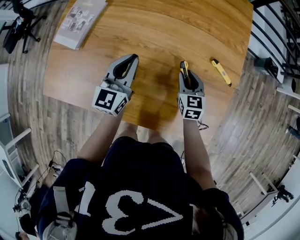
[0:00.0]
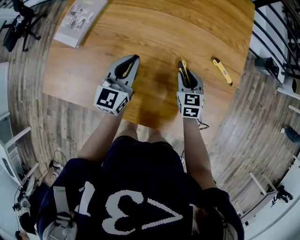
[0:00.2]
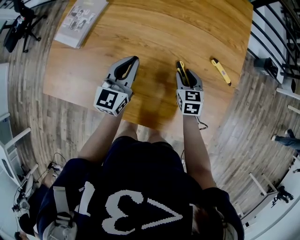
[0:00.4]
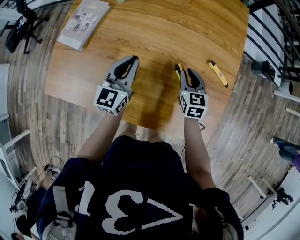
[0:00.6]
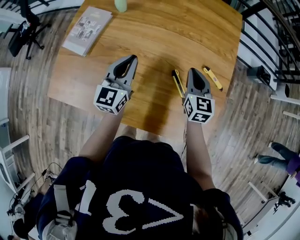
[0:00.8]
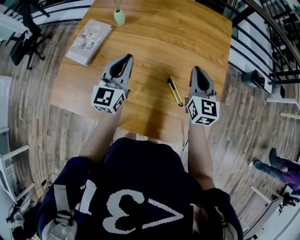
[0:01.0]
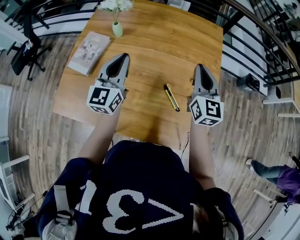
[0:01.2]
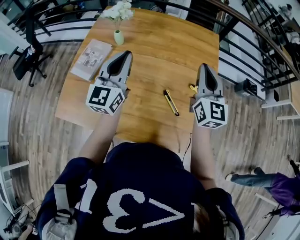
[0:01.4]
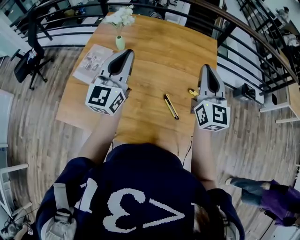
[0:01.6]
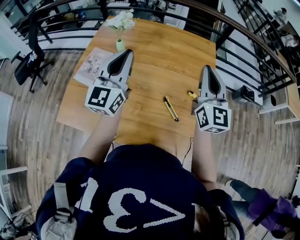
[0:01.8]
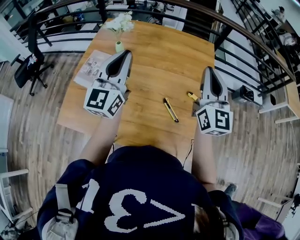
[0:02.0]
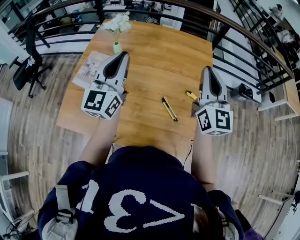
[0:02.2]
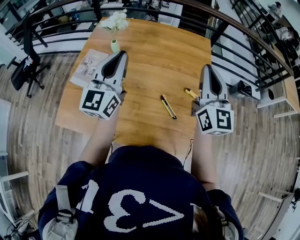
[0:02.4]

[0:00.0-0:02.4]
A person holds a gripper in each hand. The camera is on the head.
0:00.0 to 0:01.2: The right gripper heads upward, covering some 30 cm, tilts its fingers some 30 degrees upward, and closes up, while the left gripper travels upward by approximately 15 cm.
0:01.2 to 0:02.4: The two grippers go about 15 cm upward.

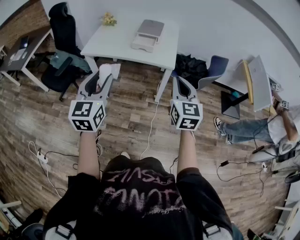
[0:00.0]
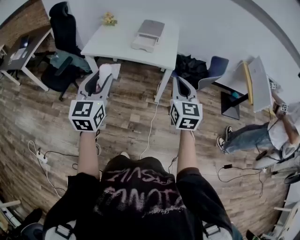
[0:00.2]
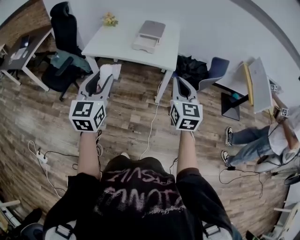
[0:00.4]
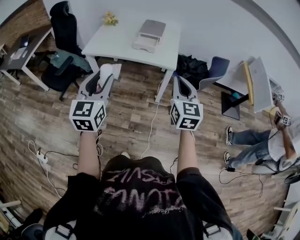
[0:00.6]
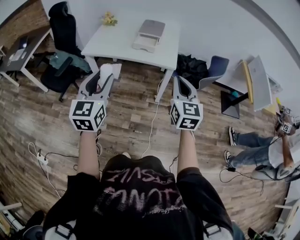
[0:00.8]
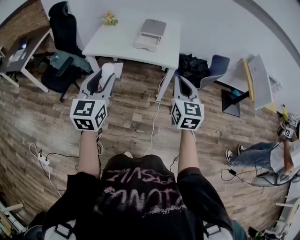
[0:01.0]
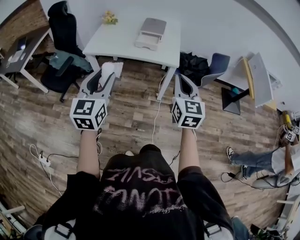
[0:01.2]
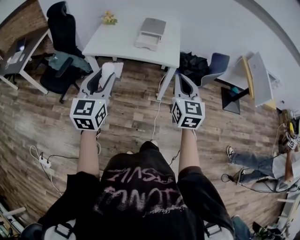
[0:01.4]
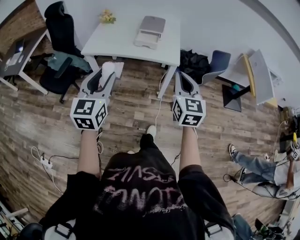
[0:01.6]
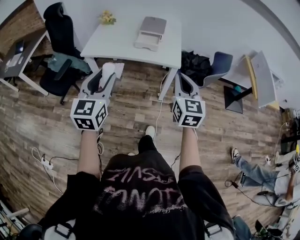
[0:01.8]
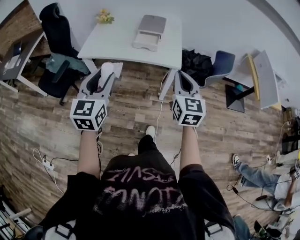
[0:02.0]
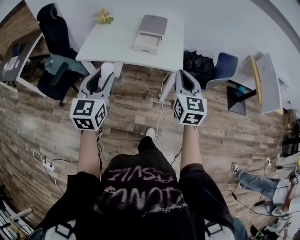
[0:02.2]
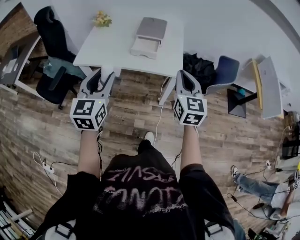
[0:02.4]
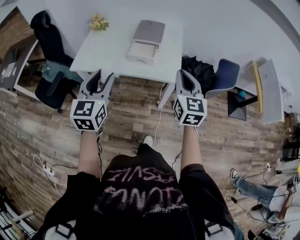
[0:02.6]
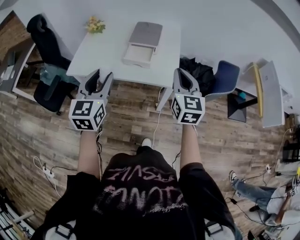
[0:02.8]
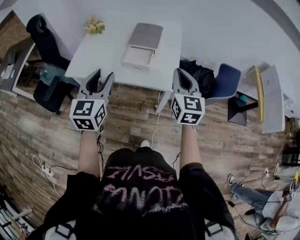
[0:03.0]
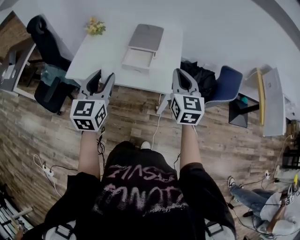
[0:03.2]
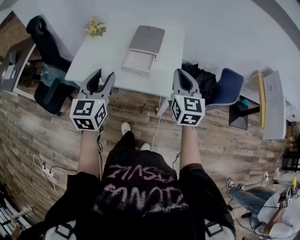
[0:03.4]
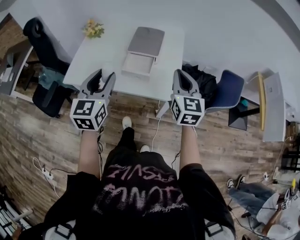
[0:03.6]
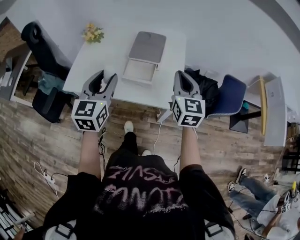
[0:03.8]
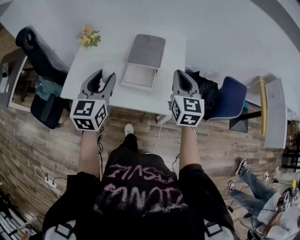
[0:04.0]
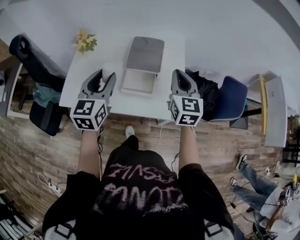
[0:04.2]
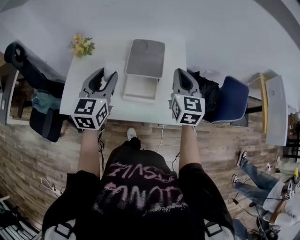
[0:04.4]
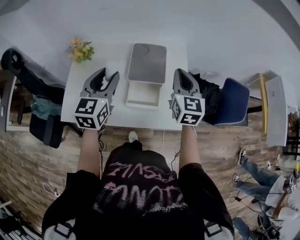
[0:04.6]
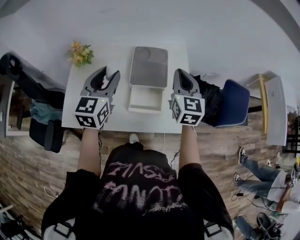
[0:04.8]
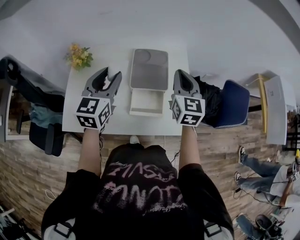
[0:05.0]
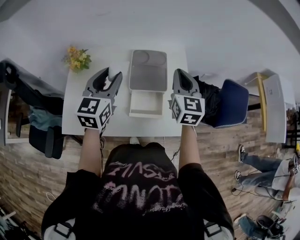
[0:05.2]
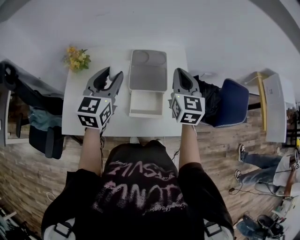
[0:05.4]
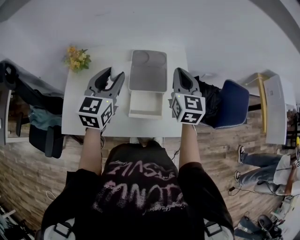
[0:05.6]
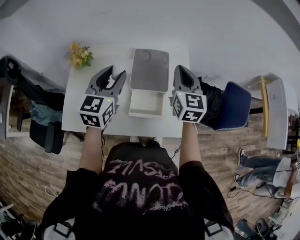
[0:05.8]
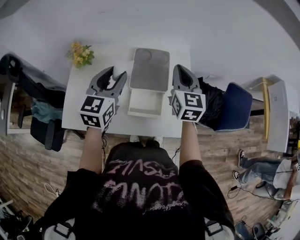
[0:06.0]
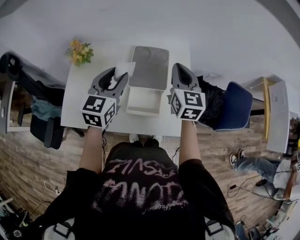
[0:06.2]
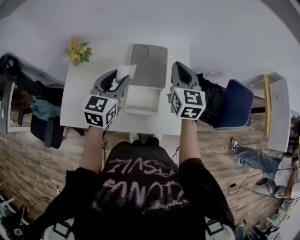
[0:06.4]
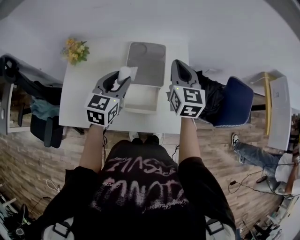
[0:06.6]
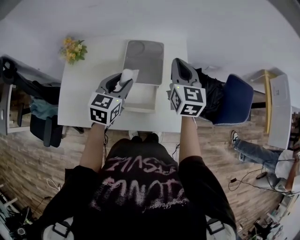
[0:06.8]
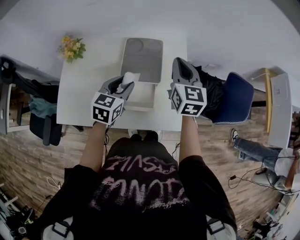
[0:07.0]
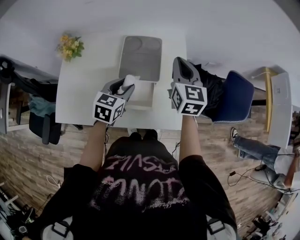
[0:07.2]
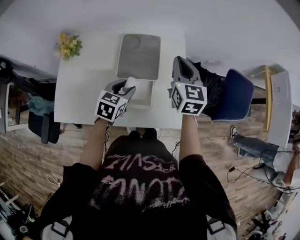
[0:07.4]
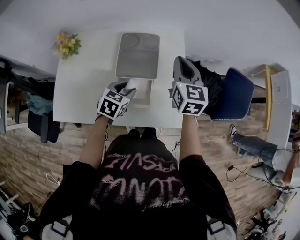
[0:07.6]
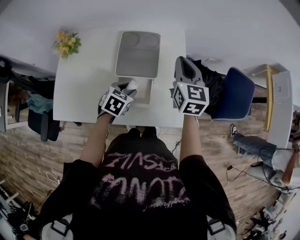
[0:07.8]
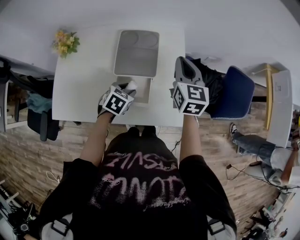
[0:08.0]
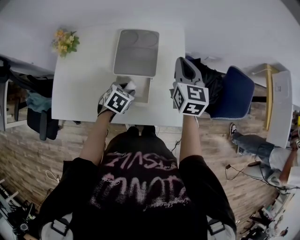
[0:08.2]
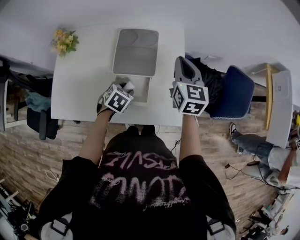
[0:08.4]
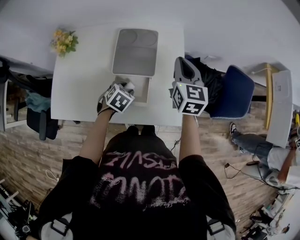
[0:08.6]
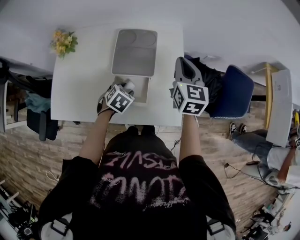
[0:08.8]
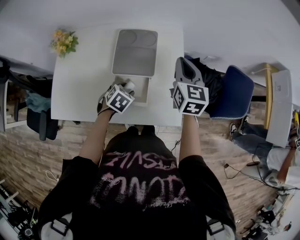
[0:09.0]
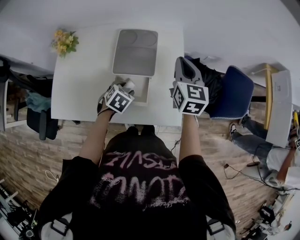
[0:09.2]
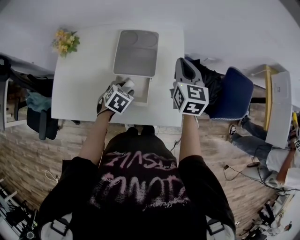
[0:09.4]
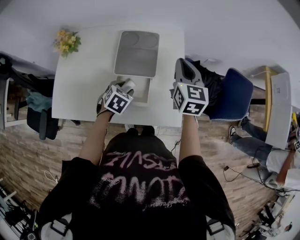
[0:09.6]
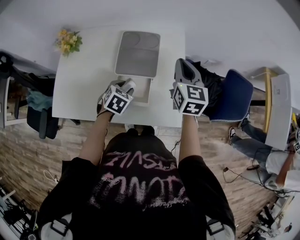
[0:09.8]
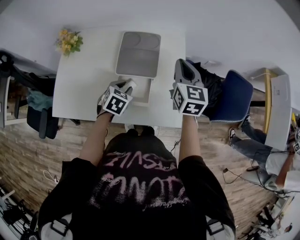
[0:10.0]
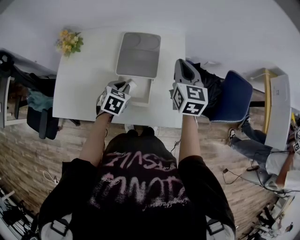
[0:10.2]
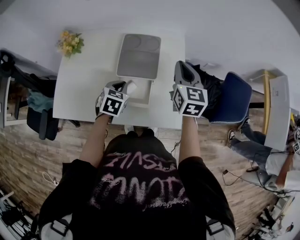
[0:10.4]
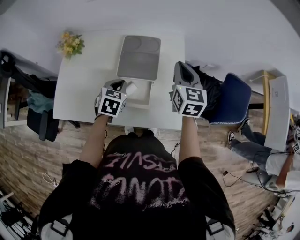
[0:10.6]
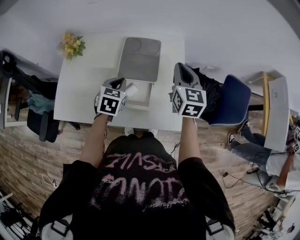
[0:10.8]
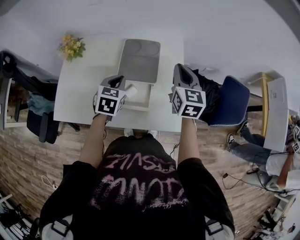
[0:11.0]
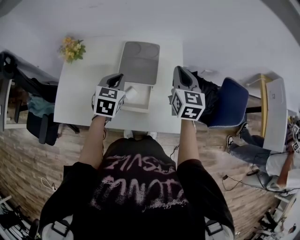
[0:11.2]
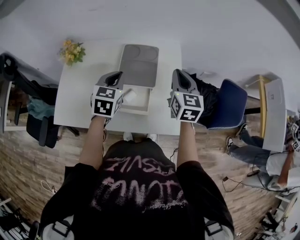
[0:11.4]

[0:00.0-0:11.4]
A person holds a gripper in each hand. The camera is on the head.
0:00.0 to 0:01.4: The grippers stay close to where they were, moving slightly.
0:01.4 to 0:02.8: The two grippers go approximately 25 cm forward.
0:02.8 to 0:04.2: The grippers both shift forward by some 25 cm.
0:04.2 to 0:05.6: The left gripper goes roughly 15 cm forward; the right gripper shifts about 15 cm forward and to the left.
0:05.6 to 0:07.2: The left gripper is displaced downward and to the right by about 20 cm, and rotates approximately 30 degrees. Meanwhile the right gripper changes place by approximately 5 cm.
0:07.2 to 0:08.6: The left gripper travels downward by roughly 10 cm, and changes its angle by some 30 degrees.
0:08.6 to 0:10.0: There are only small adjustments of the grippers.
0:10.0 to 0:11.4: The left gripper is displaced upward by roughly 15 cm, changes its angle by about 30 degrees, and closes.

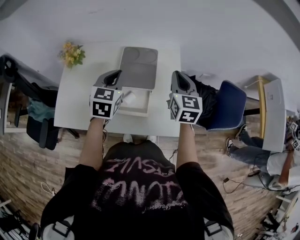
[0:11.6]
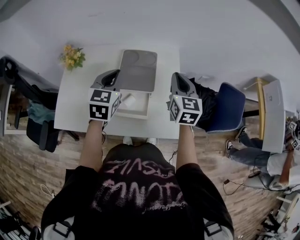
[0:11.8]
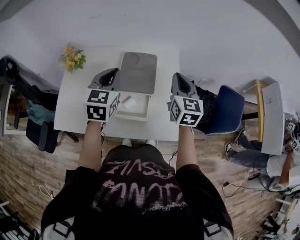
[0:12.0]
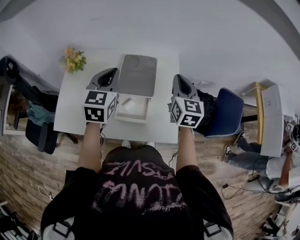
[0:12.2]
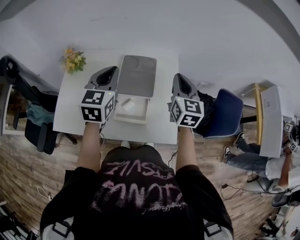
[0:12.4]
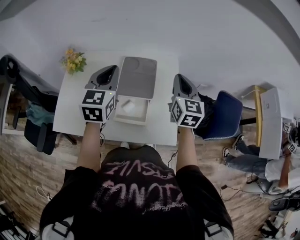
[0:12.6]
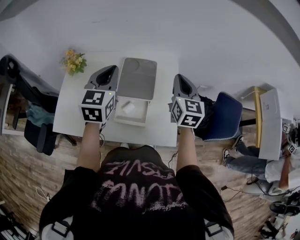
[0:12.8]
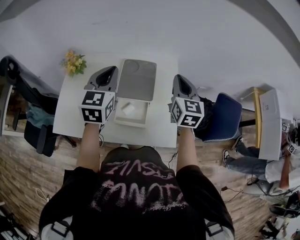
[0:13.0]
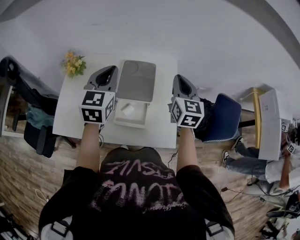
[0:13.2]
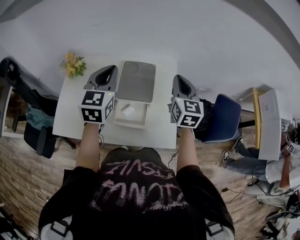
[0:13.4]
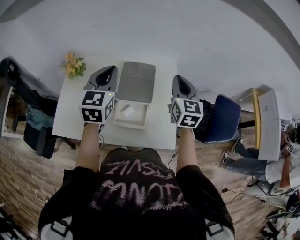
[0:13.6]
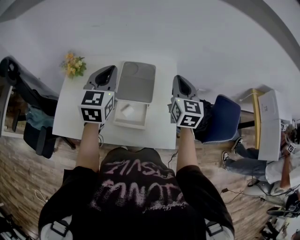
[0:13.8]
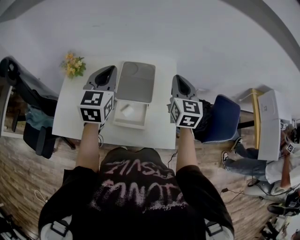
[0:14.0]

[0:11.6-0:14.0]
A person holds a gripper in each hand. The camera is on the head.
0:11.6 to 0:12.8: The left gripper heads upward, covering some 10 cm.
0:12.8 to 0:14.0: Both grippers stay put.

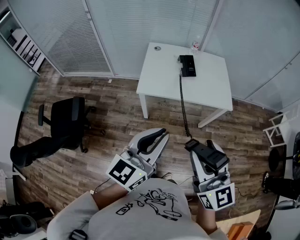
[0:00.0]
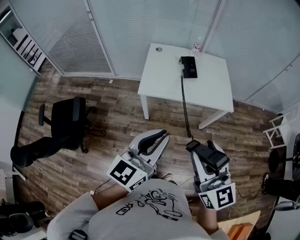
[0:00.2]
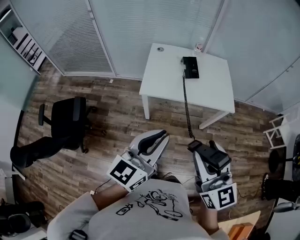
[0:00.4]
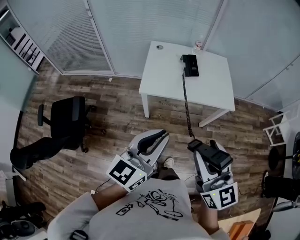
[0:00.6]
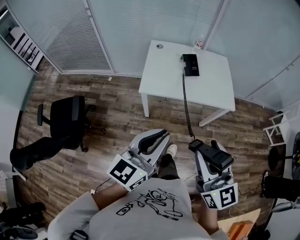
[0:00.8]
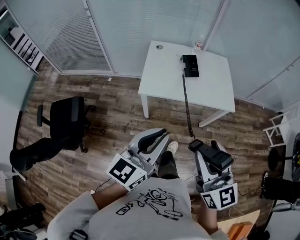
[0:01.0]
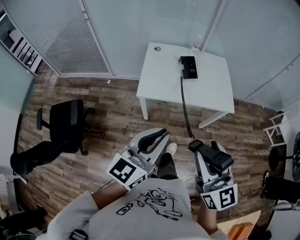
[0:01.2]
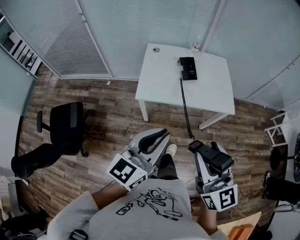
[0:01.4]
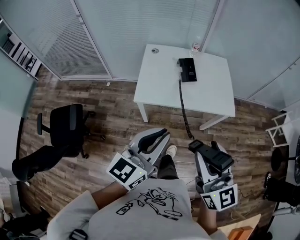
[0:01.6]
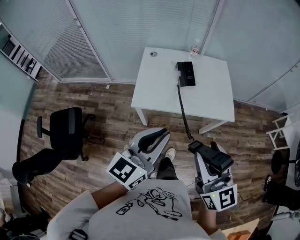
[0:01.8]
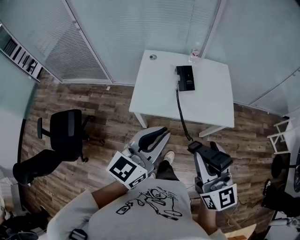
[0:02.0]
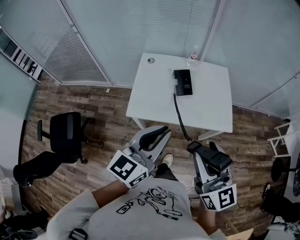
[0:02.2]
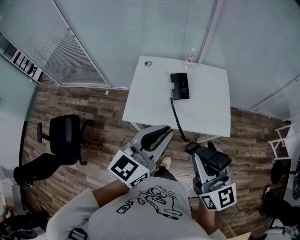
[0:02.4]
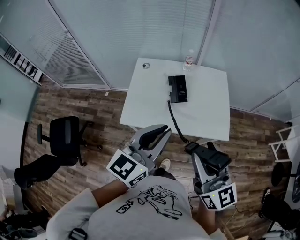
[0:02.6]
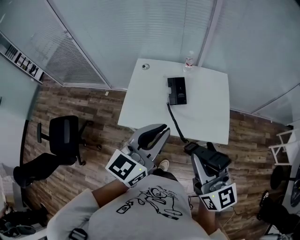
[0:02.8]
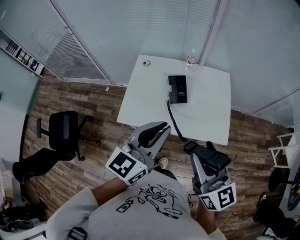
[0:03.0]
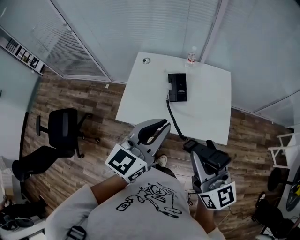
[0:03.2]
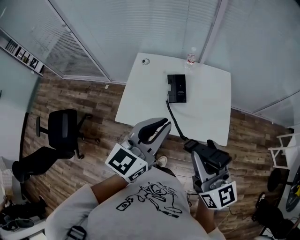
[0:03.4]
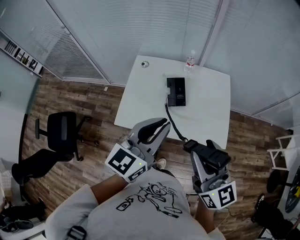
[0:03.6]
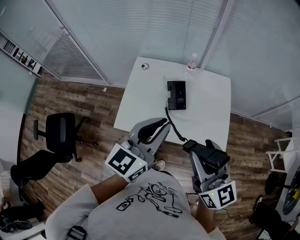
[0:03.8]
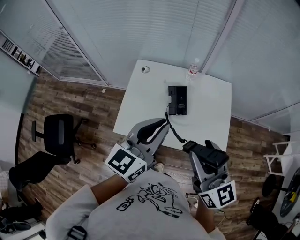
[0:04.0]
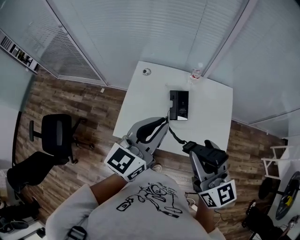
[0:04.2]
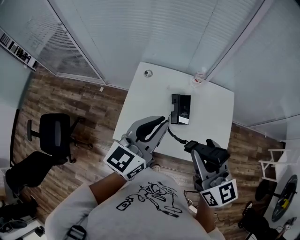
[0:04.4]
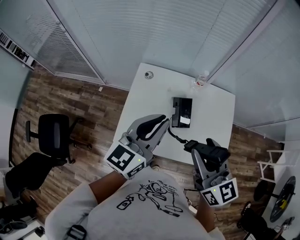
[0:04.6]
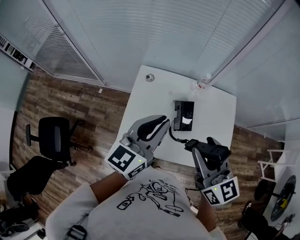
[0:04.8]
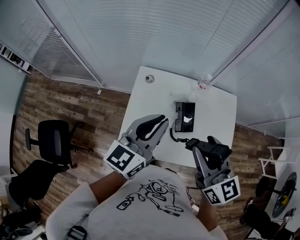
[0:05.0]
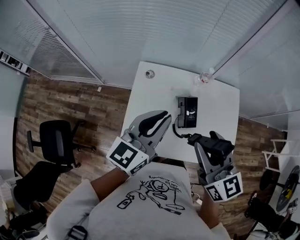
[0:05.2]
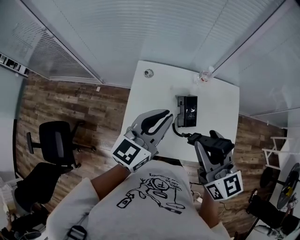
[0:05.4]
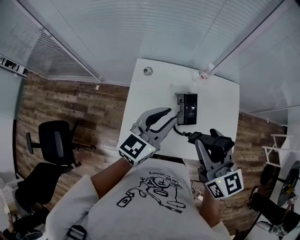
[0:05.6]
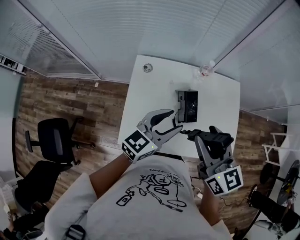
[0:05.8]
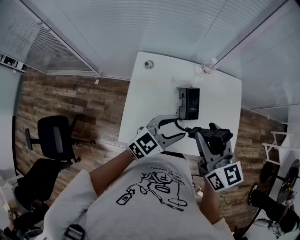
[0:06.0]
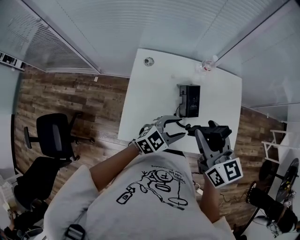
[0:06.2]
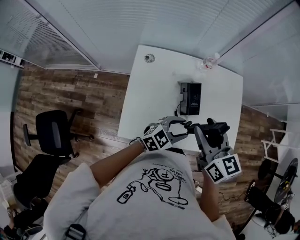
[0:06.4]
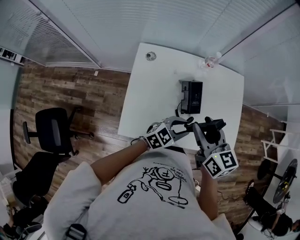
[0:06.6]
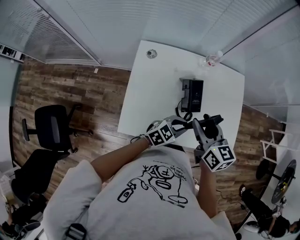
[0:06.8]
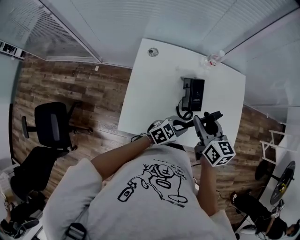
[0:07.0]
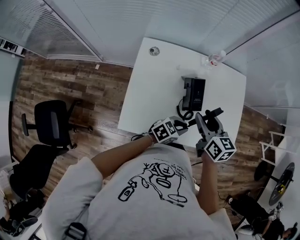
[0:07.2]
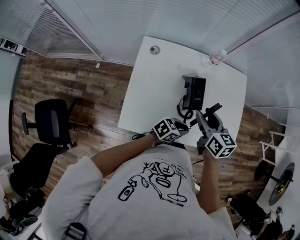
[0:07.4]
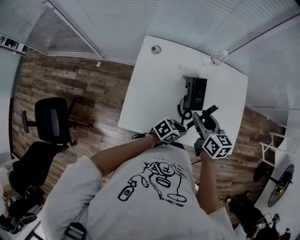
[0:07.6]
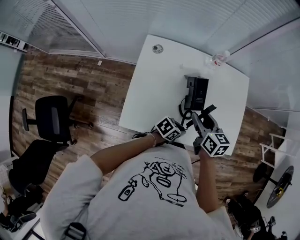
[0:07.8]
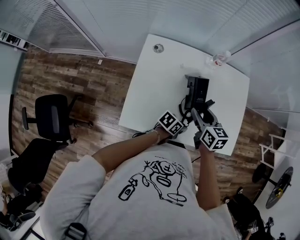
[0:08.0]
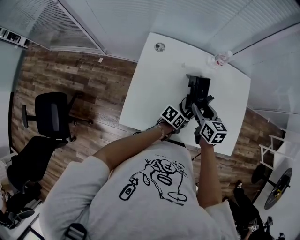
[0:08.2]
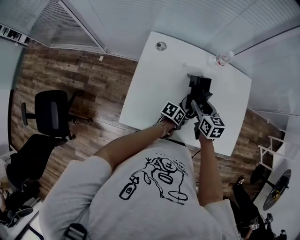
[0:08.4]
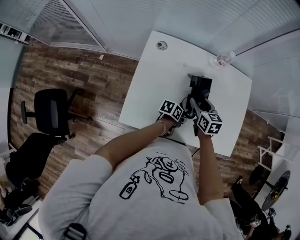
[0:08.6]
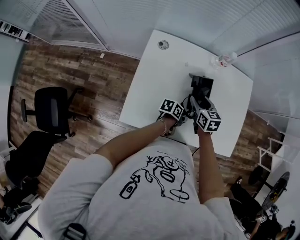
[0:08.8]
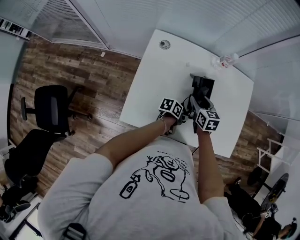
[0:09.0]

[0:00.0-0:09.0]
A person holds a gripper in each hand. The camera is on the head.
0:00.0 to 0:01.6: The grippers both shift forward by some 10 cm.
0:01.6 to 0:03.0: The grippers both shift forward and to the right by about 25 cm.
0:03.0 to 0:04.4: The left gripper heads forward and to the left, covering some 20 cm, while the right gripper shifts roughly 15 cm forward.
0:04.4 to 0:06.0: The right gripper shifts some 10 cm forward, downward and to the left. The left gripper moves downward, approximately 15 cm, rotates about 30 degrees, and opens.
0:06.0 to 0:07.6: The left gripper is displaced downward and to the right by about 20 cm, swivels roughly 40 degrees, and closes up; the right gripper is displaced downward by about 20 cm, and rotates roughly 20 degrees.
0:07.6 to 0:09.0: The two grippers go roughly 10 cm downward and forward. The left gripper rotates around the line of its fingers by roughly 50 degrees, counterclockwise from behind.
